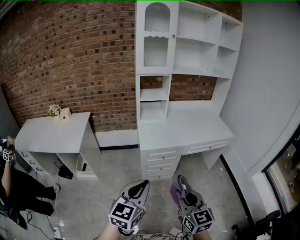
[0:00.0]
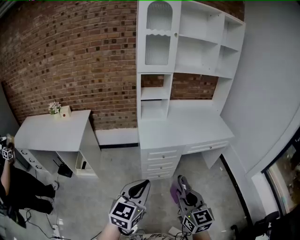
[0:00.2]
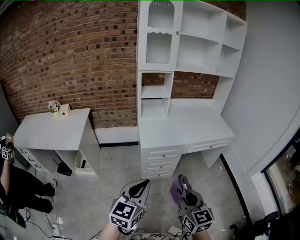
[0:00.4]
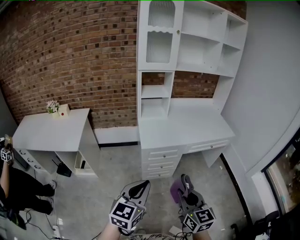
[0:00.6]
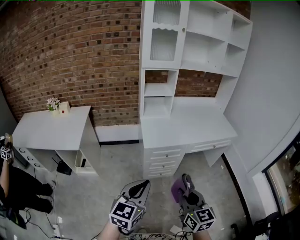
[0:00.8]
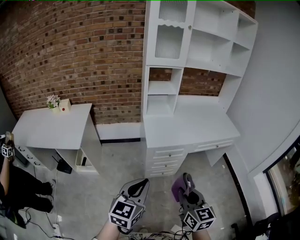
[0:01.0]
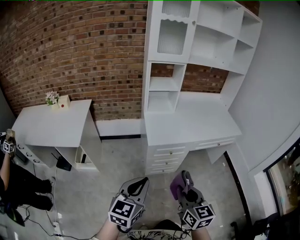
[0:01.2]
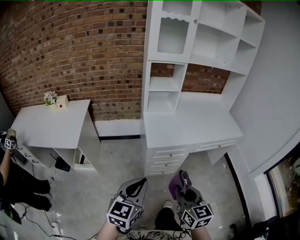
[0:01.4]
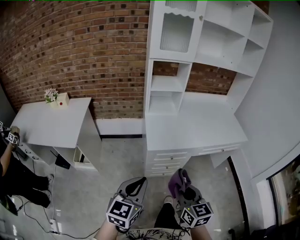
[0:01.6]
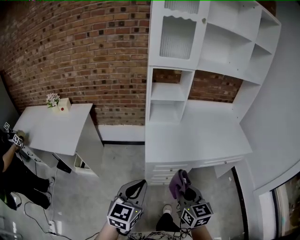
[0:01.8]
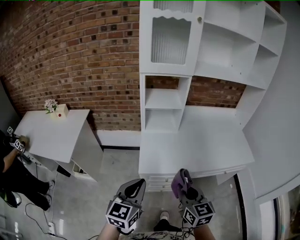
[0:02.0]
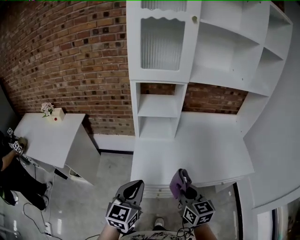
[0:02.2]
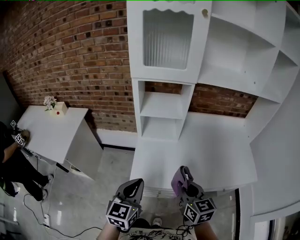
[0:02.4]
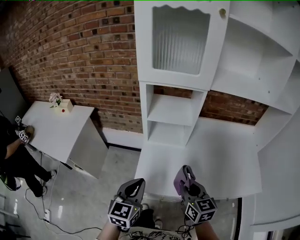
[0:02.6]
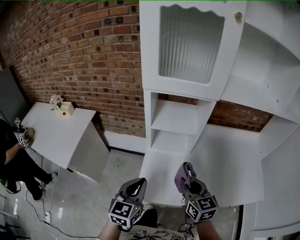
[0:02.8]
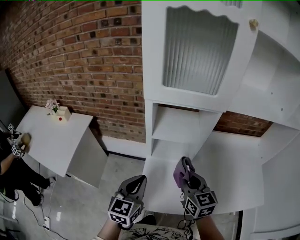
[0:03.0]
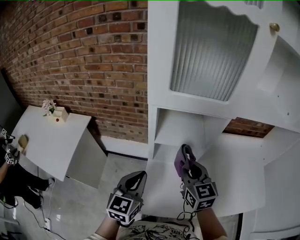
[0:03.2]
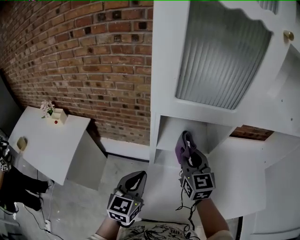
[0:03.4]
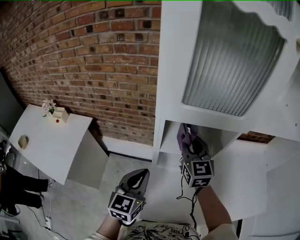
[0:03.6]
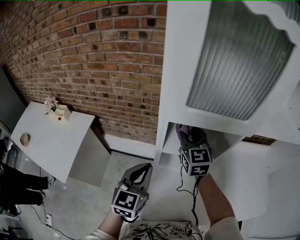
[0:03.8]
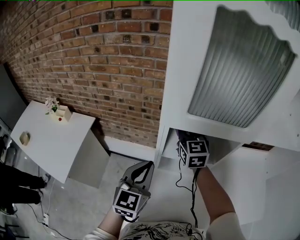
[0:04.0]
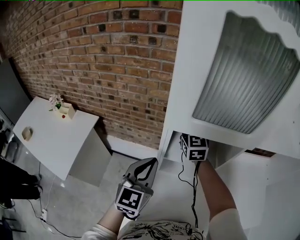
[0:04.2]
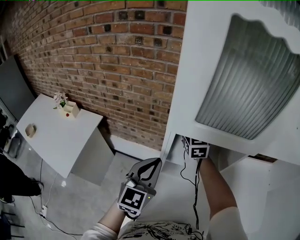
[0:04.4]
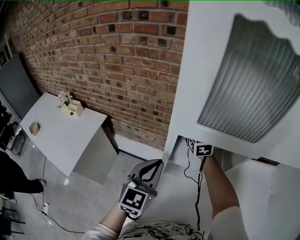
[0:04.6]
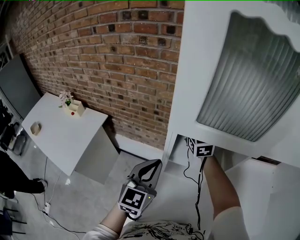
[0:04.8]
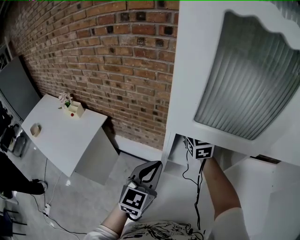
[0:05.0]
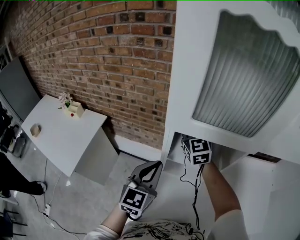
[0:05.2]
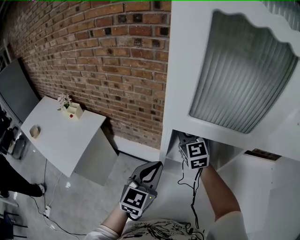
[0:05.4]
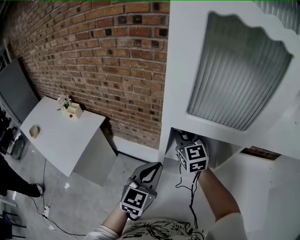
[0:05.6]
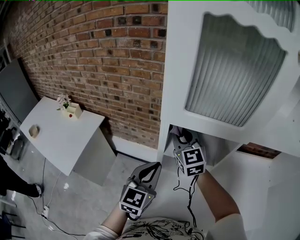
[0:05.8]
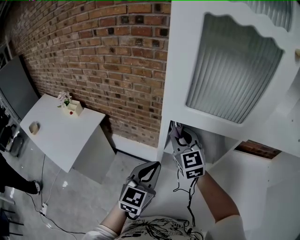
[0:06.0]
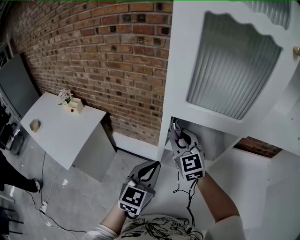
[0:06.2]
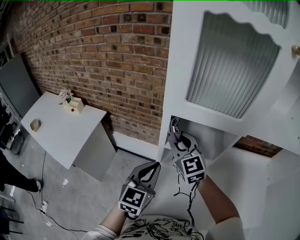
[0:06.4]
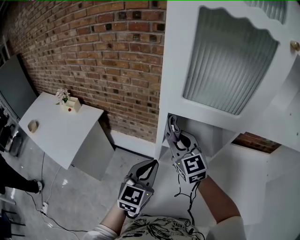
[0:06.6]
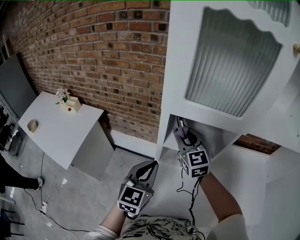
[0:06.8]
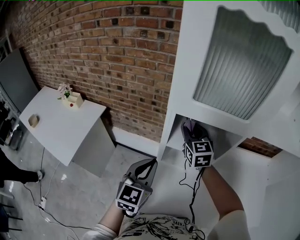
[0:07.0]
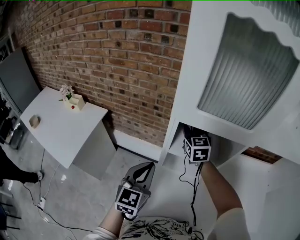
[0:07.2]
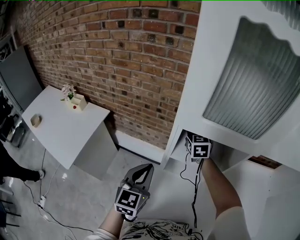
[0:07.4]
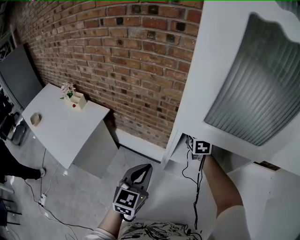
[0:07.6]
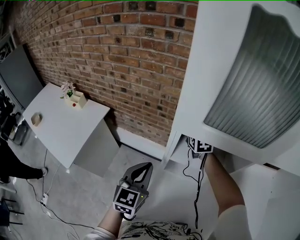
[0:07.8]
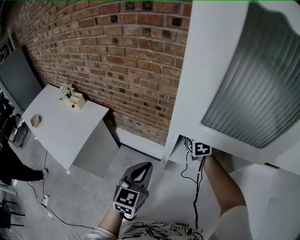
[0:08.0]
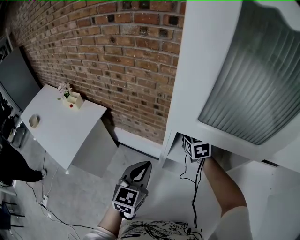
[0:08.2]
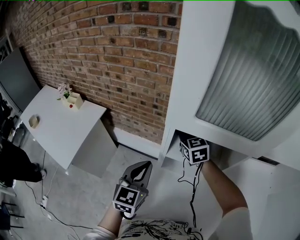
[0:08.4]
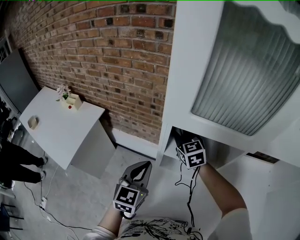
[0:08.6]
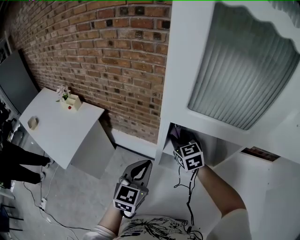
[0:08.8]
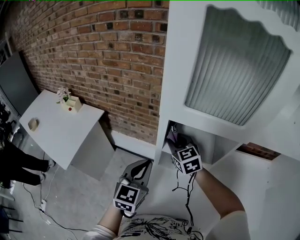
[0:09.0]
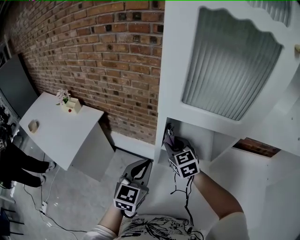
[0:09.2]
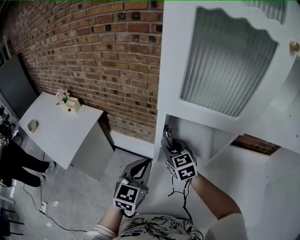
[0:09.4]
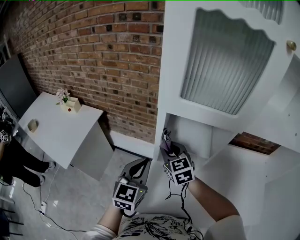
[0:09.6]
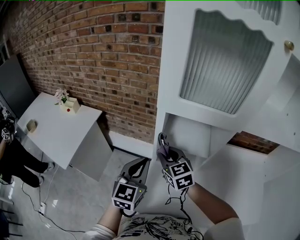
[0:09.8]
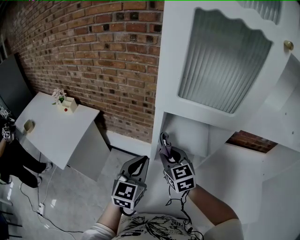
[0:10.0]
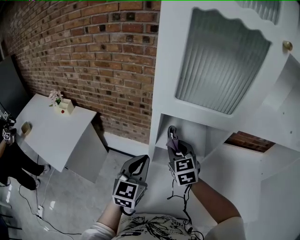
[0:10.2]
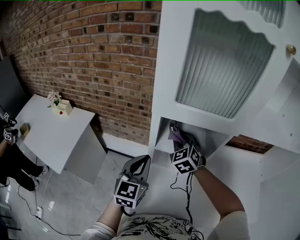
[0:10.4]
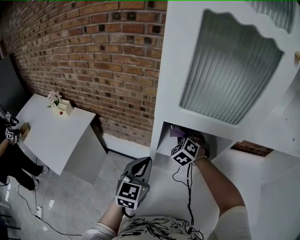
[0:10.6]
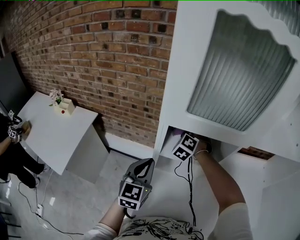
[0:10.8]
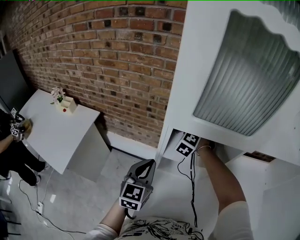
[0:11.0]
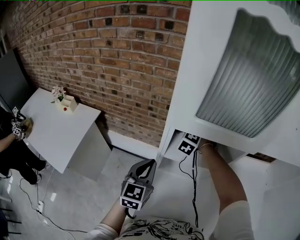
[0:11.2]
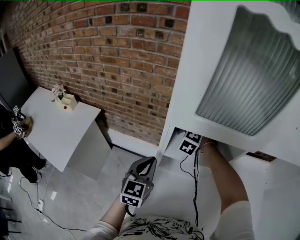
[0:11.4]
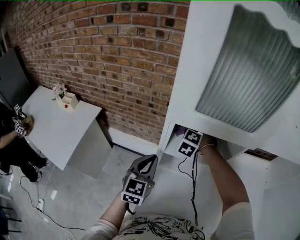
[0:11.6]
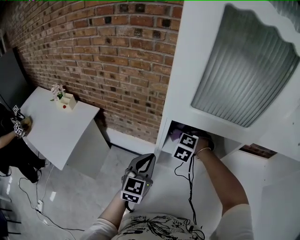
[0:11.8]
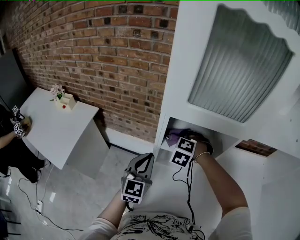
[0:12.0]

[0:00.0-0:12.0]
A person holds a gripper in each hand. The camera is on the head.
0:00.0 to 0:01.6: The left gripper shifts approximately 15 cm forward, to the left and downward, while the right gripper shifts roughly 20 cm forward, downward and to the left.
0:01.6 to 0:03.0: Both grippers are carried forward, roughly 50 cm.
0:03.0 to 0:04.4: The left gripper goes about 20 cm forward and upward, while the right gripper heads forward, covering roughly 35 cm, and rotates approximately 20 degrees.
0:04.4 to 0:06.0: The left gripper heads backward, covering some 5 cm, while the right gripper travels backward by about 15 cm.
0:06.0 to 0:07.6: The right gripper moves forward and downward, about 20 cm, and rotates some 20 degrees, while the left gripper shifts some 5 cm to the left.
0:07.6 to 0:09.0: The right gripper goes about 15 cm backward.
0:09.0 to 0:10.4: The right gripper travels to the right by about 5 cm, travels backward and back again, roughly 10 cm each way, and turns by approximately 30 degrees.
0:10.4 to 0:12.0: The right gripper moves downward, about 5 cm, moves roughly 10 cm forward and comes back, and rotates about 40 degrees.

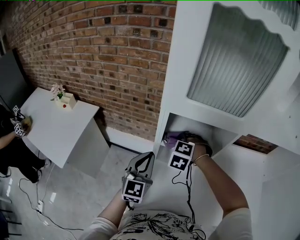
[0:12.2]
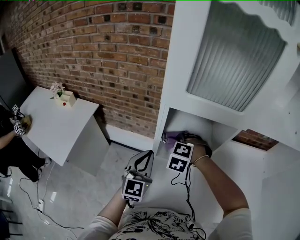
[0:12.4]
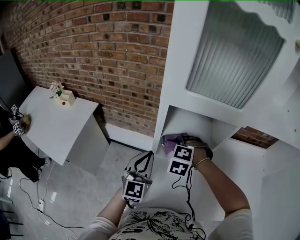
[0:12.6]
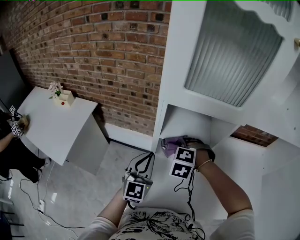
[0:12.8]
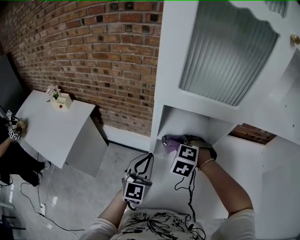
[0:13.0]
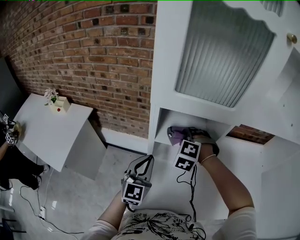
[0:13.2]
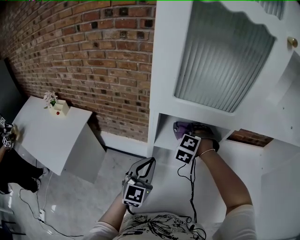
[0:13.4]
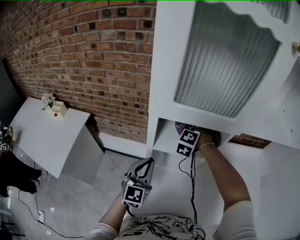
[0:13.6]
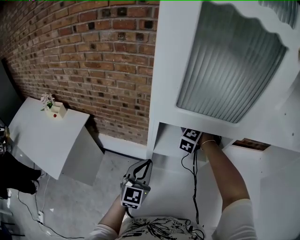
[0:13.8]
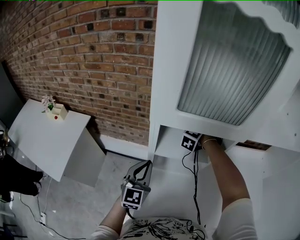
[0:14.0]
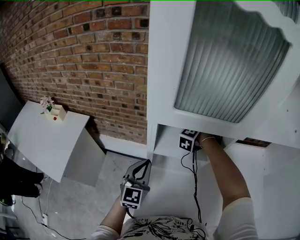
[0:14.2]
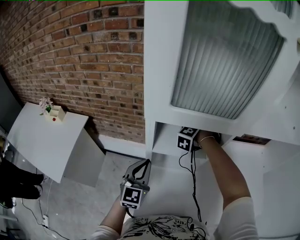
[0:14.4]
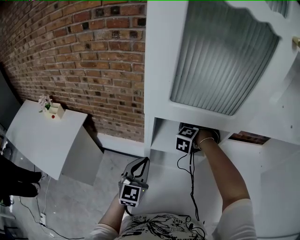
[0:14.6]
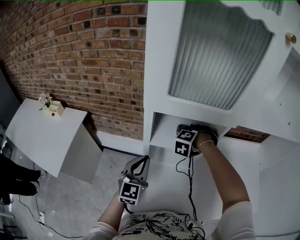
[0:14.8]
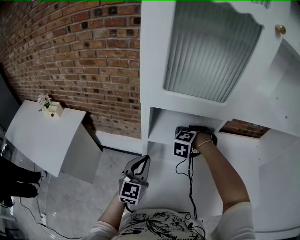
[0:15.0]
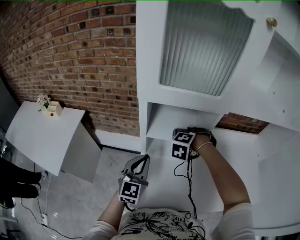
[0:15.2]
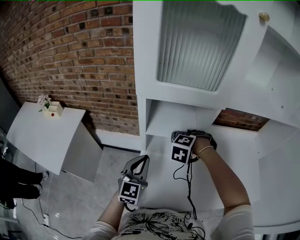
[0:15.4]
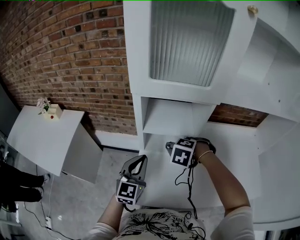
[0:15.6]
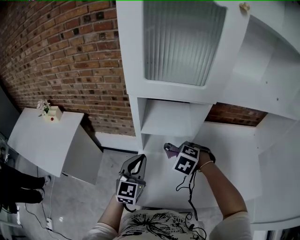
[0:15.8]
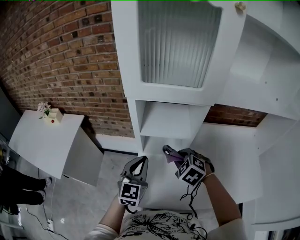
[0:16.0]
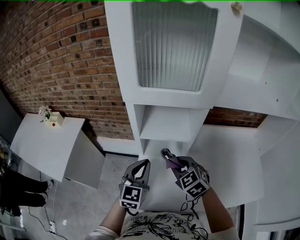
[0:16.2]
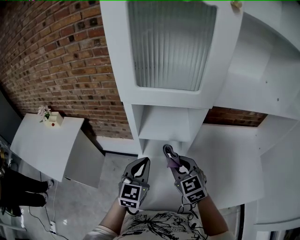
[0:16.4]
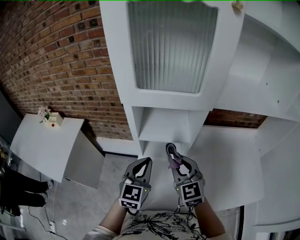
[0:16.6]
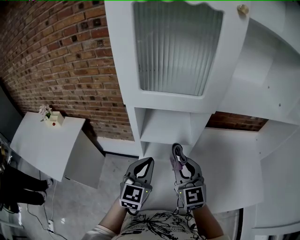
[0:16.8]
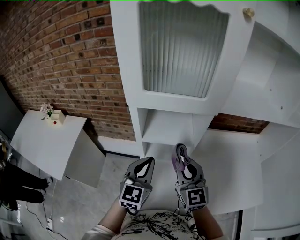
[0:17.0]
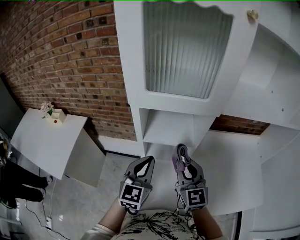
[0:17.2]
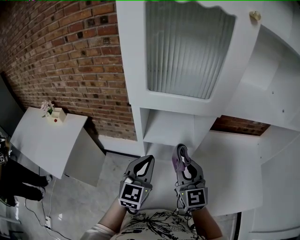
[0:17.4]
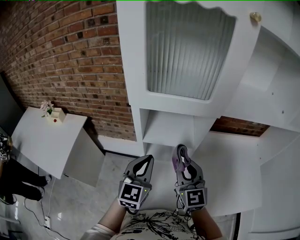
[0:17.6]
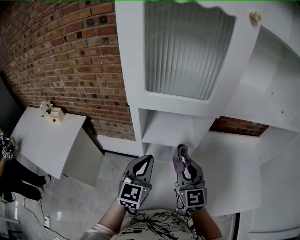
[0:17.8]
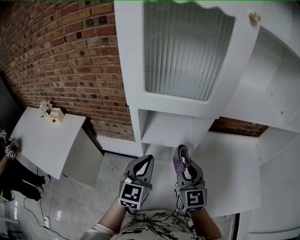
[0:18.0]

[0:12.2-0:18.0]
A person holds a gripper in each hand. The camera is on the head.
0:12.2 to 0:13.6: The right gripper moves forward and to the right, approximately 15 cm.
0:13.6 to 0:15.0: The right gripper heads to the right and backward, covering approximately 10 cm, and changes its angle by some 20 degrees.
0:15.0 to 0:16.6: The left gripper shifts by approximately 5 cm. Meanwhile the right gripper changes place by roughly 15 cm, and angles its fingers upward, by about 40 degrees.
0:16.6 to 0:18.0: There are only small adjustments of the grippers.

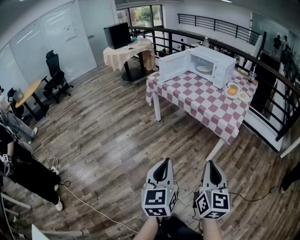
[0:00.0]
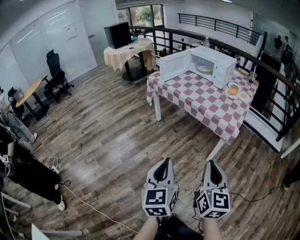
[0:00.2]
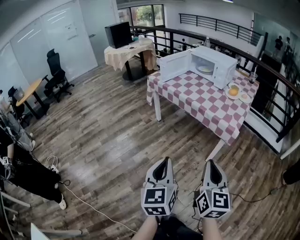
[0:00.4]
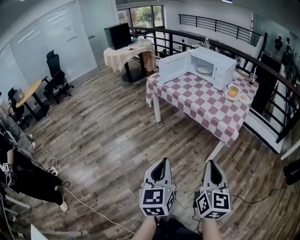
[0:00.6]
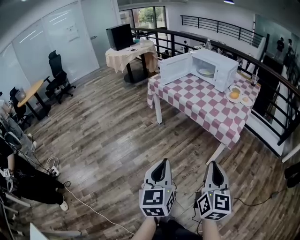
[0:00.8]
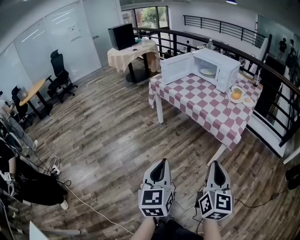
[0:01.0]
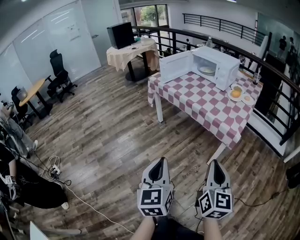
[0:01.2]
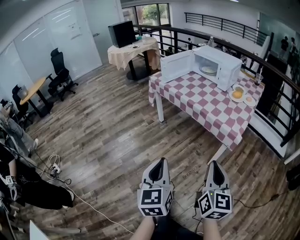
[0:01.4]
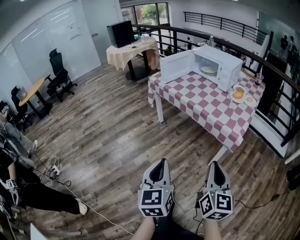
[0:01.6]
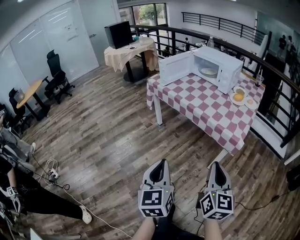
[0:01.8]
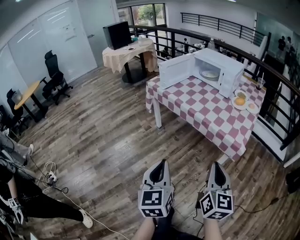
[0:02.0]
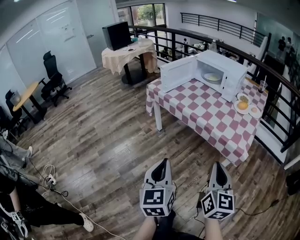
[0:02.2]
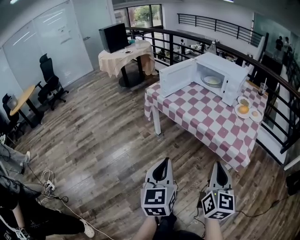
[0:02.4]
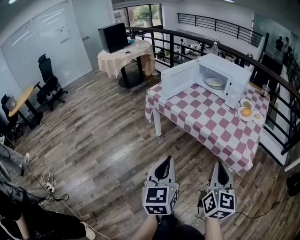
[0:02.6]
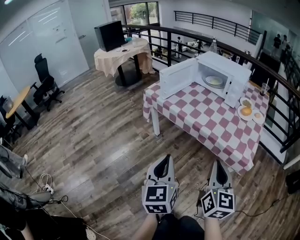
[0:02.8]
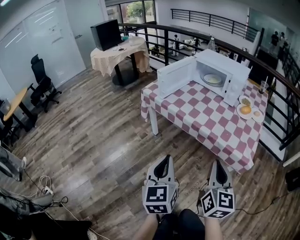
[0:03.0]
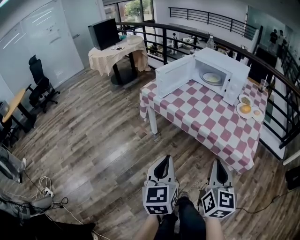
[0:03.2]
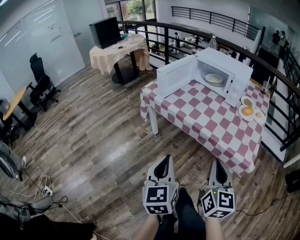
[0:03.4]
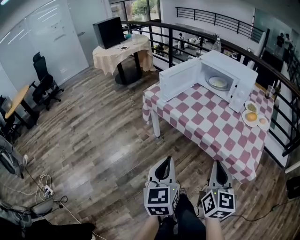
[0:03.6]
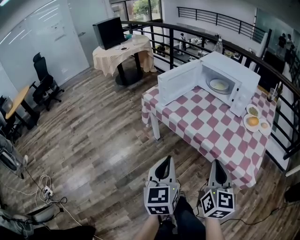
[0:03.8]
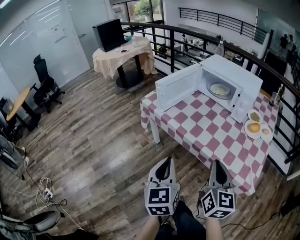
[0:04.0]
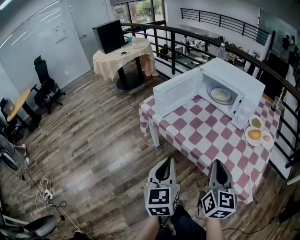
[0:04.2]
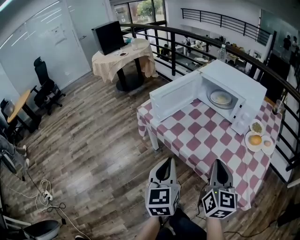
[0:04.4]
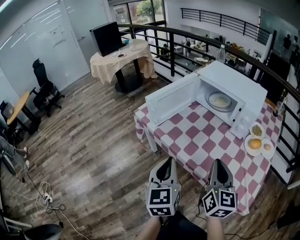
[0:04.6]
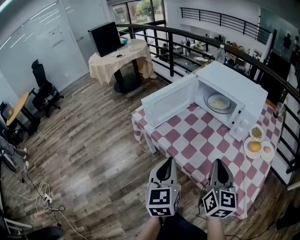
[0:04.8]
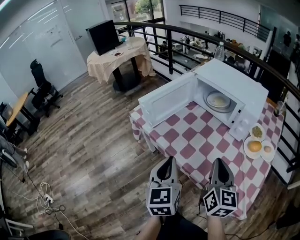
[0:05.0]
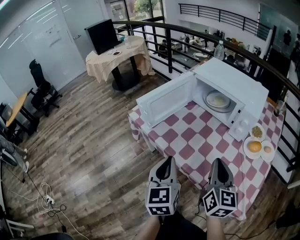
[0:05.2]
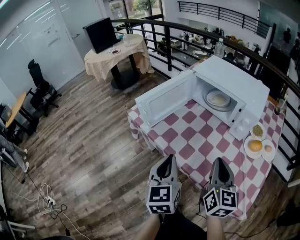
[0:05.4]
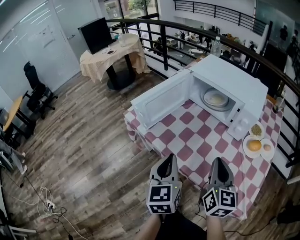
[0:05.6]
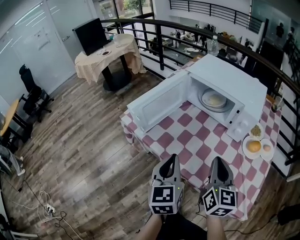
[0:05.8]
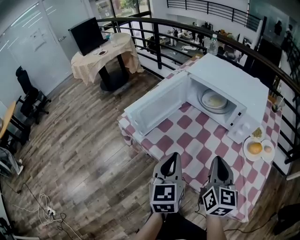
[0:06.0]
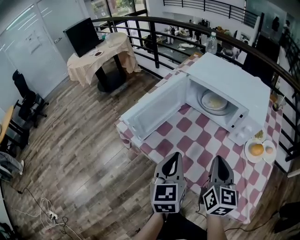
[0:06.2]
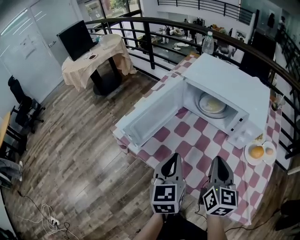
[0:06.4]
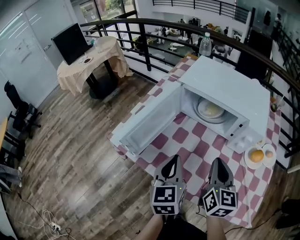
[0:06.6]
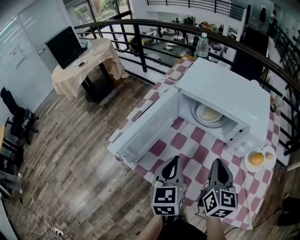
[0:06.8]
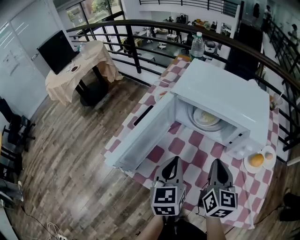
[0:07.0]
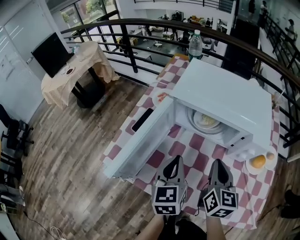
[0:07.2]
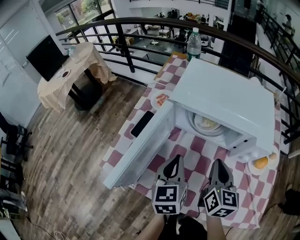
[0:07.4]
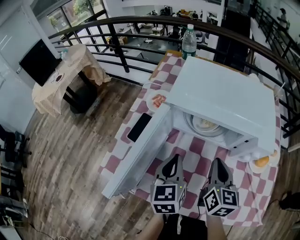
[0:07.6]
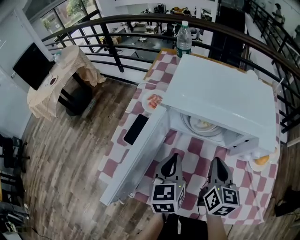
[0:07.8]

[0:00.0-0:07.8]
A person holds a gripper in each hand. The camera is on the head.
0:00.0 to 0:01.6: Both grippers travel together forward, about 5 cm.
0:01.6 to 0:03.2: Both grippers move forward, some 25 cm.
0:03.2 to 0:04.6: Both grippers travel together forward, about 25 cm.
0:04.6 to 0:06.2: The grippers both shift forward by about 15 cm.
0:06.2 to 0:07.8: Both grippers move forward, some 20 cm. The right gripper rotates about 20 degrees.
